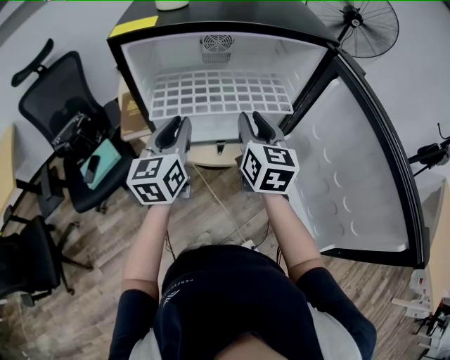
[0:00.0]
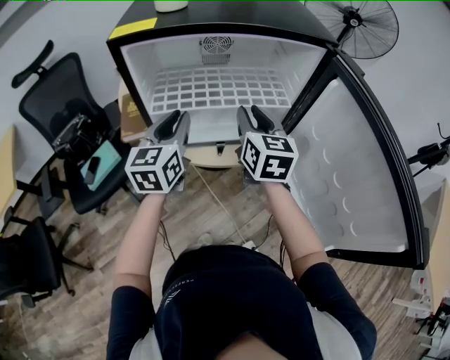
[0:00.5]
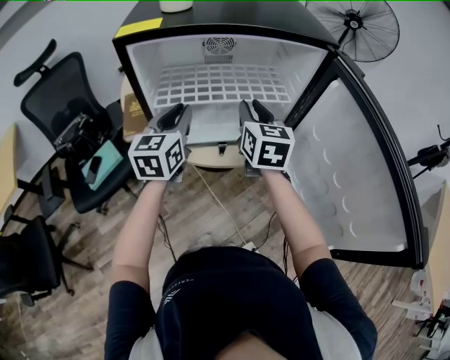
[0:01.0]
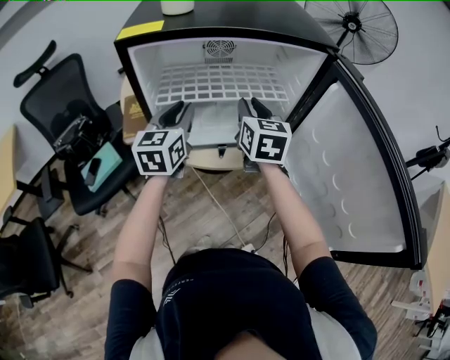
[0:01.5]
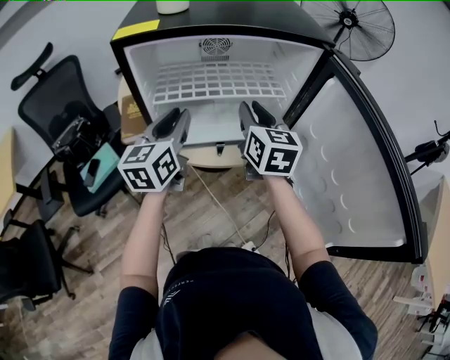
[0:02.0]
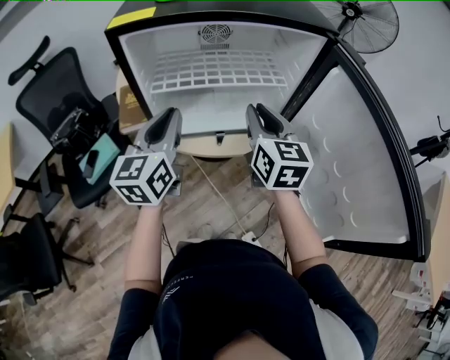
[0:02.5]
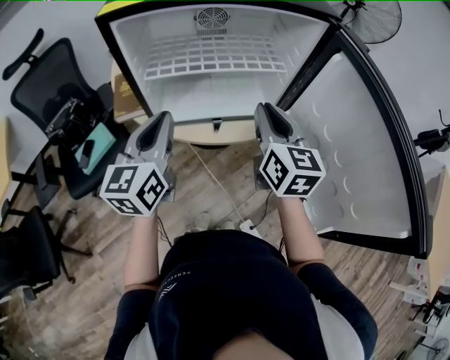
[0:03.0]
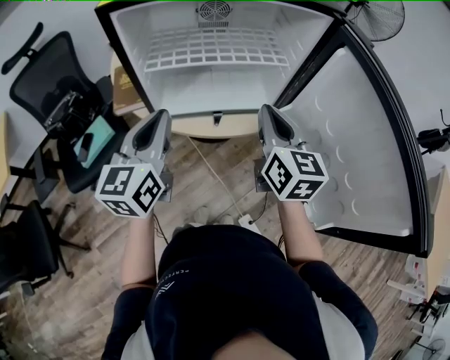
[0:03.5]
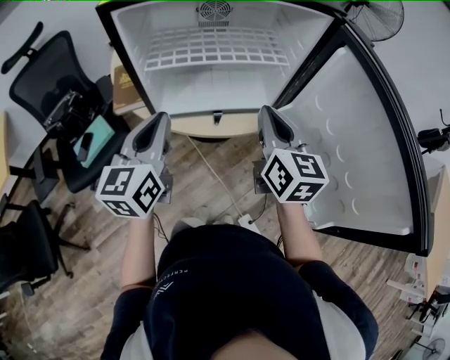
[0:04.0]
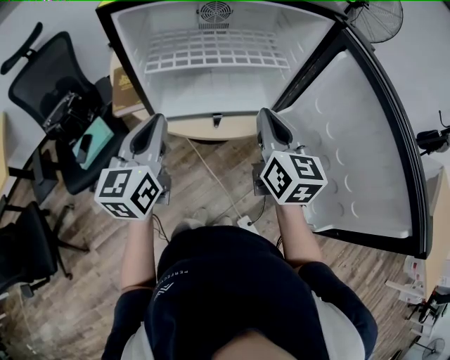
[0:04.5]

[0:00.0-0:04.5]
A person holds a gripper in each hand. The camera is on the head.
0:00.0 to 0:02.0: The grippers stay close to where they were, moving slightly.
0:02.0 to 0:04.5: Both grippers move backward, some 10 cm. The right gripper closes up.

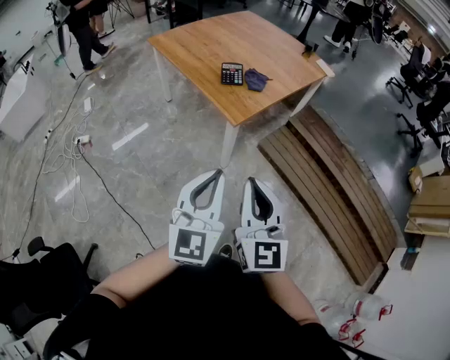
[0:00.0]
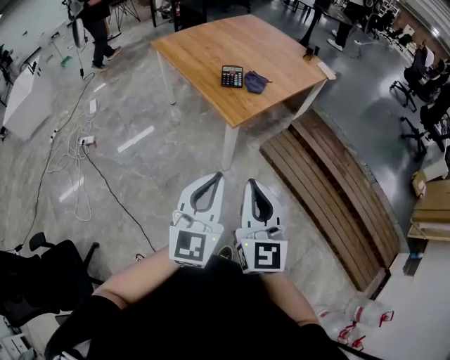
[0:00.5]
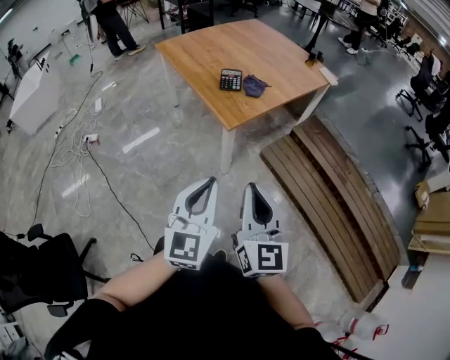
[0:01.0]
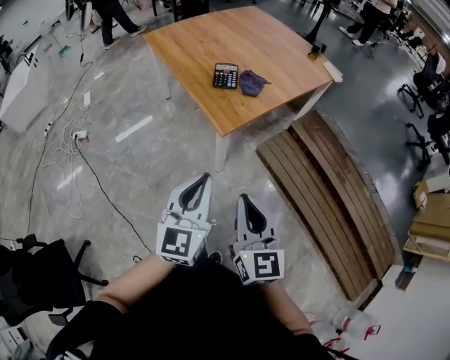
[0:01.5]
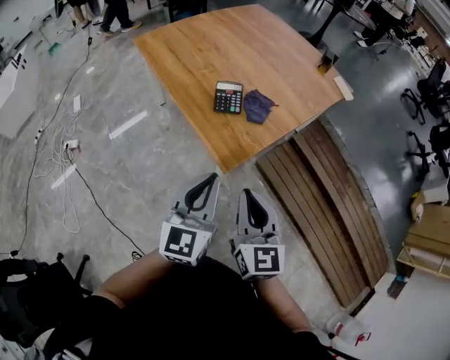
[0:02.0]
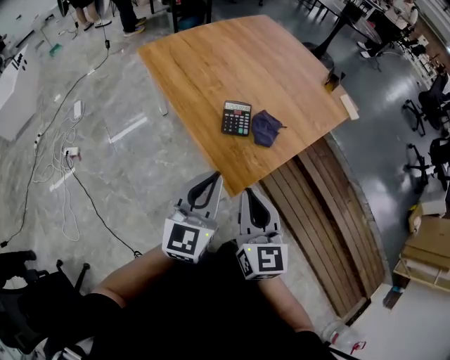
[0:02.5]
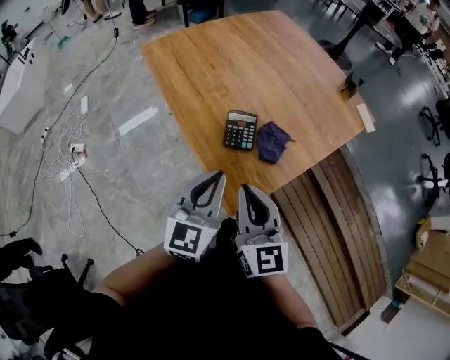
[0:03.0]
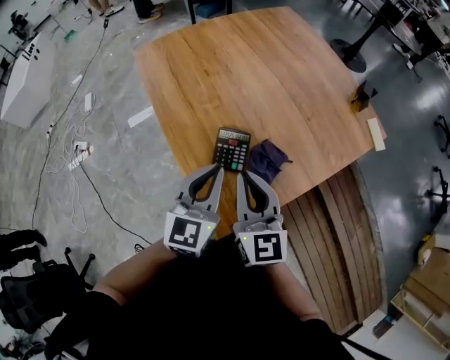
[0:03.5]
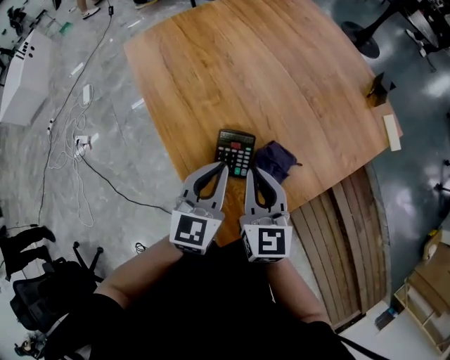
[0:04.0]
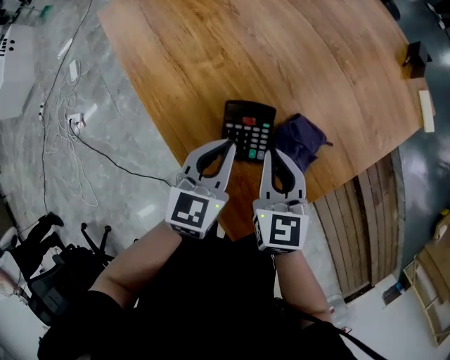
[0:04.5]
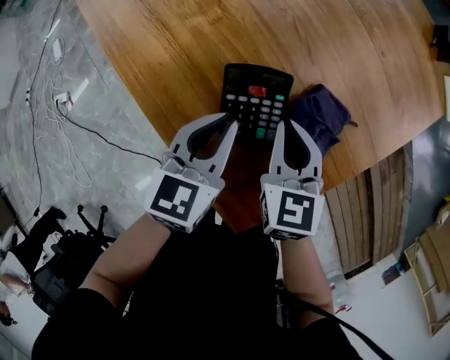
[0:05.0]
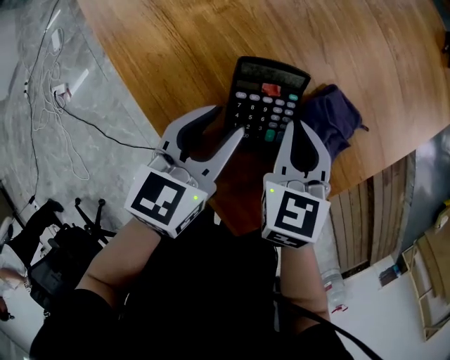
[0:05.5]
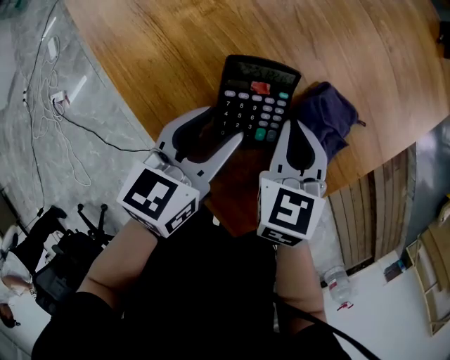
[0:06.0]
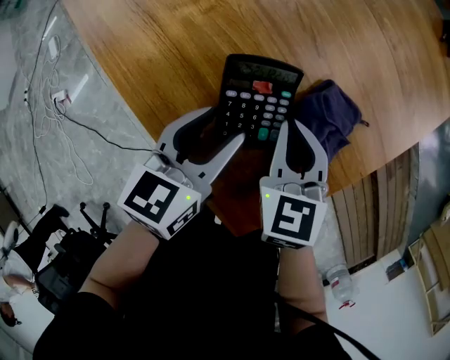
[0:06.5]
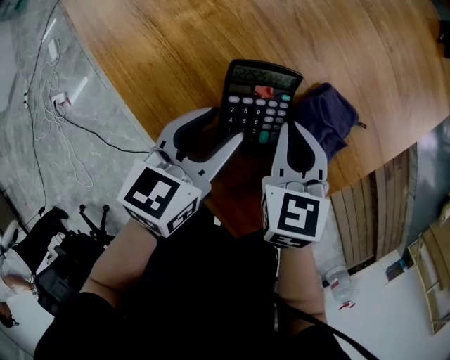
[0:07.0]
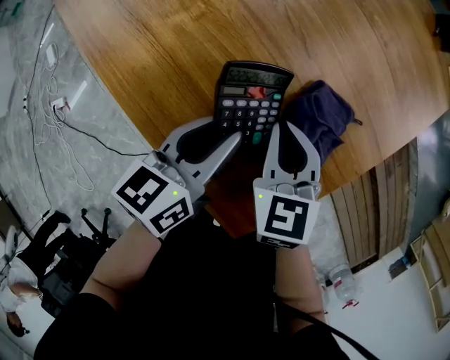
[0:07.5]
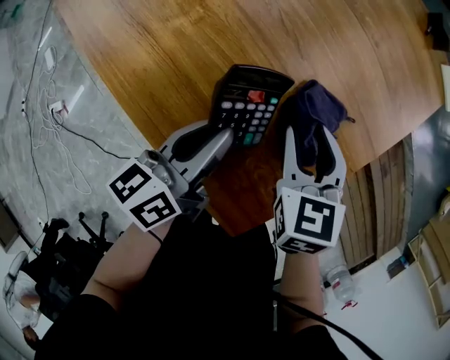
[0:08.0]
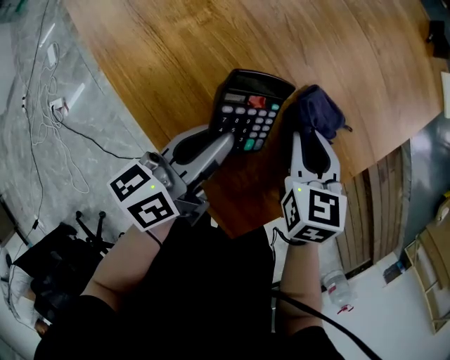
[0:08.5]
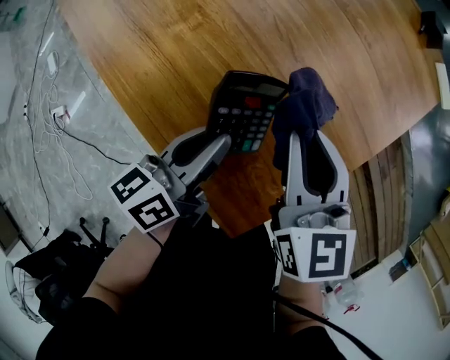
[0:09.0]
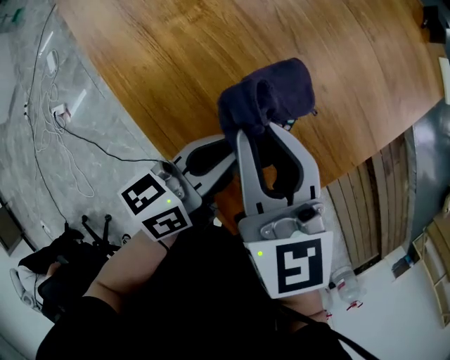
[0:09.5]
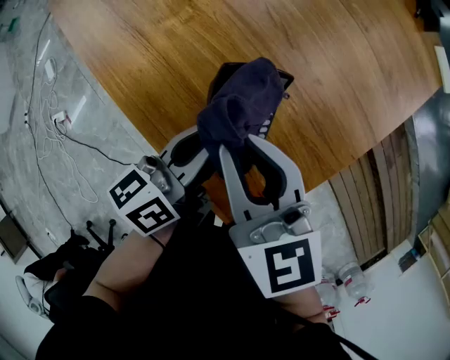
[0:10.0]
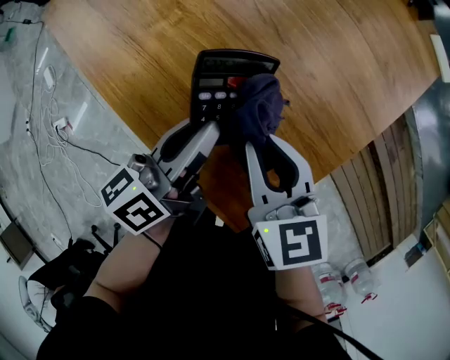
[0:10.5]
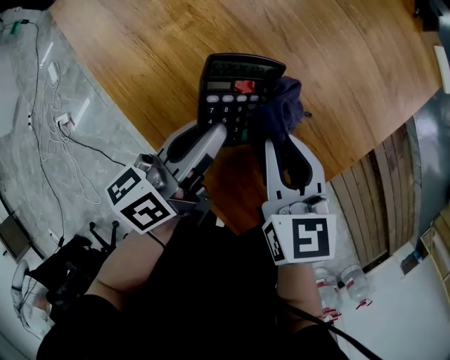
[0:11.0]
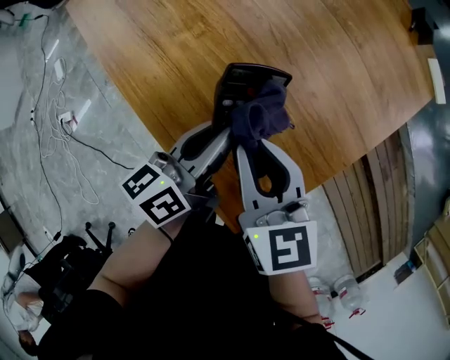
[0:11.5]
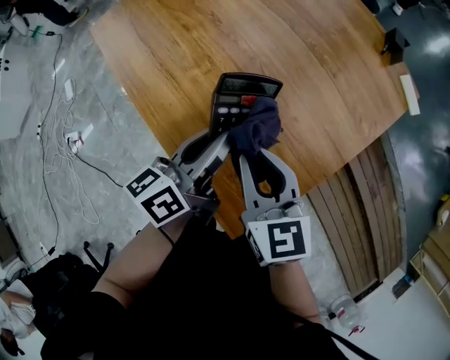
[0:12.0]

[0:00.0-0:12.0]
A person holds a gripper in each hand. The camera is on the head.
0:00.0 to 0:02.0: The two grippers go some 30 cm forward.
0:02.0 to 0:04.0: The two grippers travel together, forward, roughly 40 cm.
0:04.0 to 0:06.0: The grippers both shift downward by roughly 25 cm. The right gripper rotates roughly 30 degrees. Meanwhile the left gripper rotates some 30 degrees, and opens its fingers.
0:06.0 to 0:08.0: The right gripper opens its fingers, while the left gripper changes its angle by some 30 degrees, and closes.
0:08.0 to 0:10.0: The right gripper moves to the left, upward and backward, approximately 15 cm, and changes its angle by about 30 degrees.
0:10.0 to 0:12.0: The right gripper shifts about 5 cm upward. Meanwhile the left gripper shifts roughly 10 cm upward.

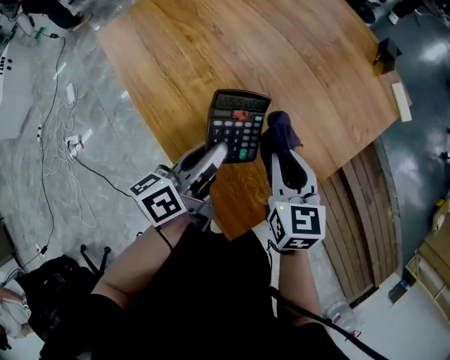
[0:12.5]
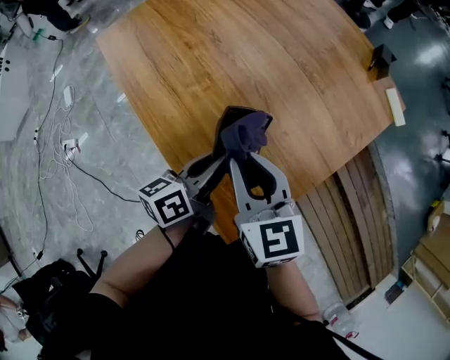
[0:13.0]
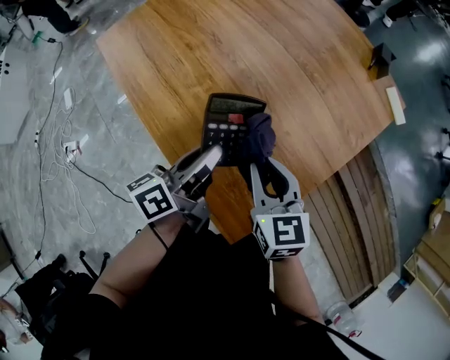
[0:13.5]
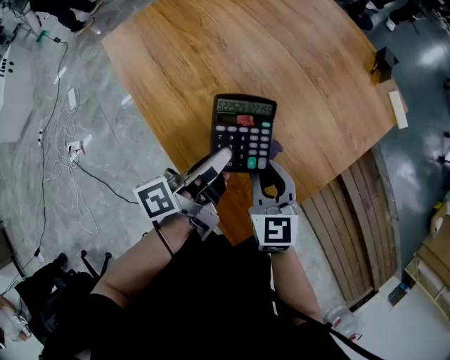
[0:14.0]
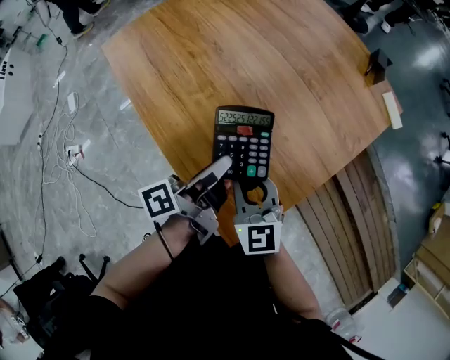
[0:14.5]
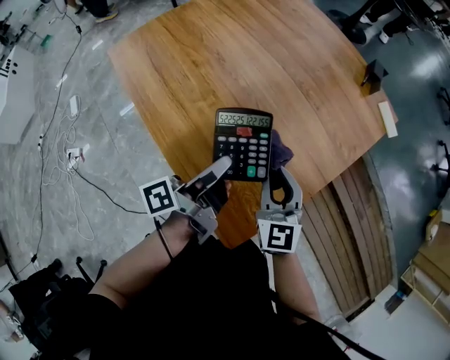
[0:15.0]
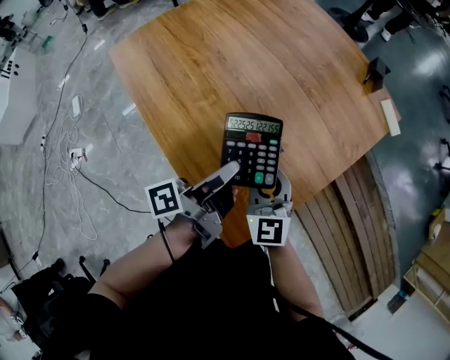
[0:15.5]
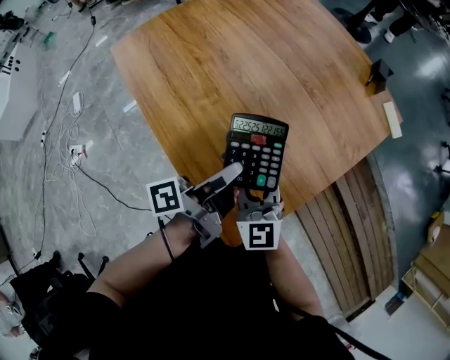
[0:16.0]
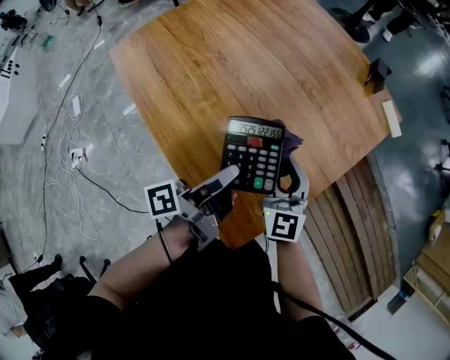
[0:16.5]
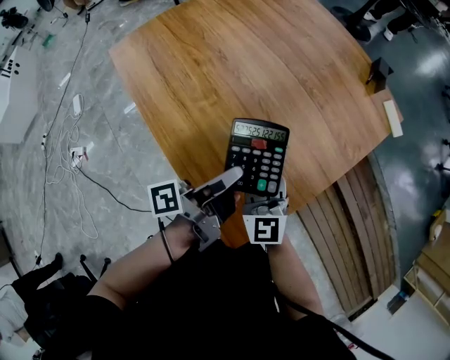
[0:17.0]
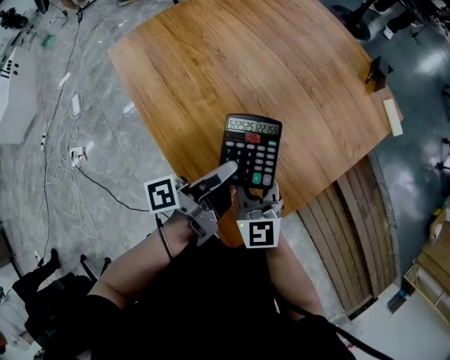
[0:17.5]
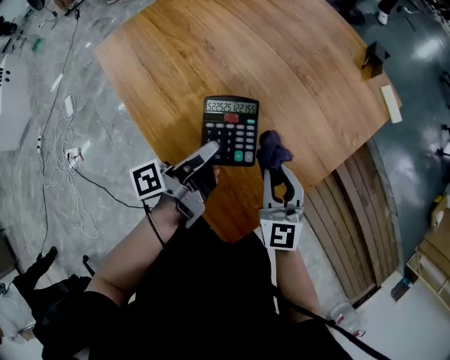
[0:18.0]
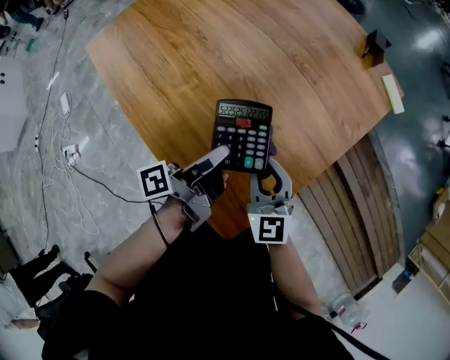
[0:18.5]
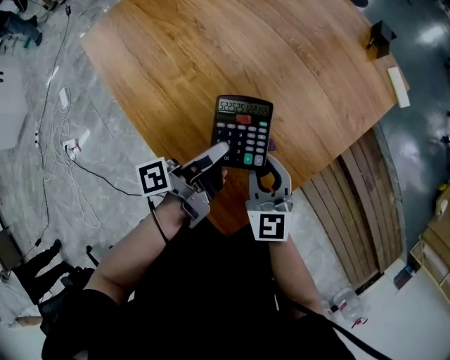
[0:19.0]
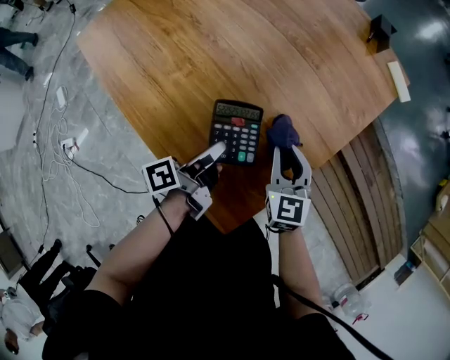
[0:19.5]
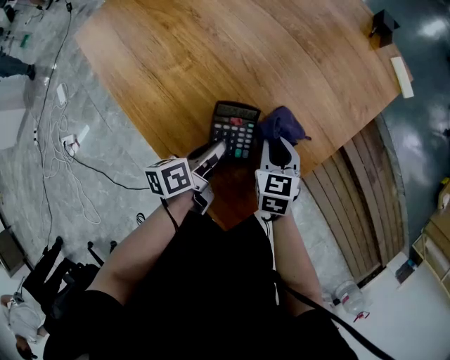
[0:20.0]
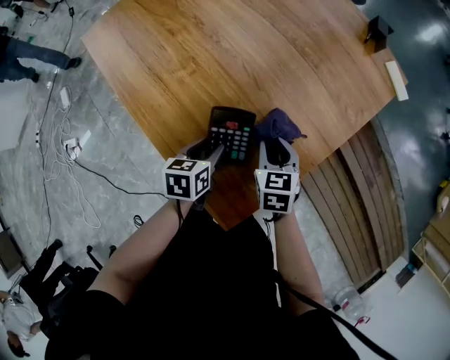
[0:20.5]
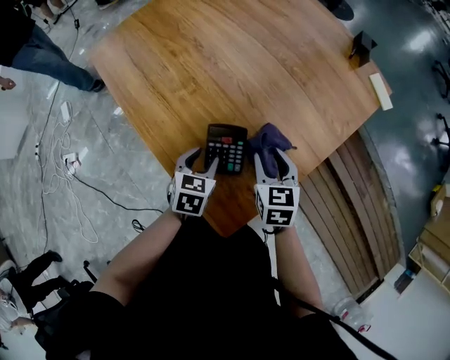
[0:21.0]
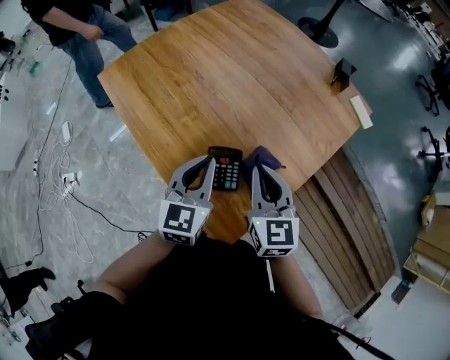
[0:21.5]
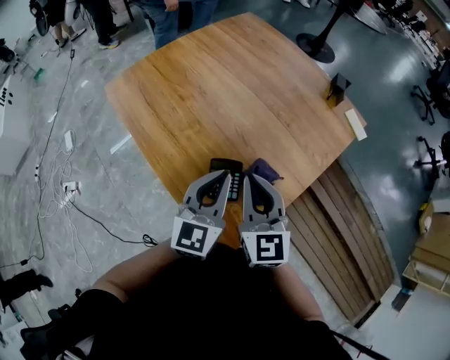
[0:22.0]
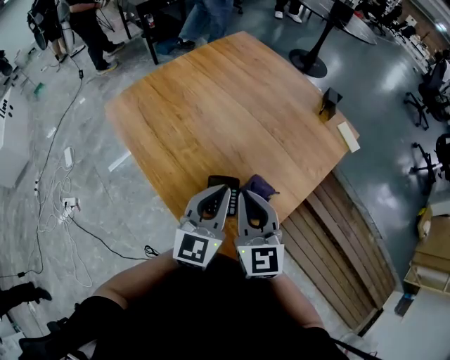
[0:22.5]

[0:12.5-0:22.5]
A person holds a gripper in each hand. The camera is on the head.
0:12.5 to 0:14.5: The right gripper moves left and right over about 10 cm, changing direction 2 times, and swivels about 20 degrees. The left gripper turns by roughly 30 degrees.
0:14.5 to 0:16.5: The right gripper moves left and right over about 10 cm, changing direction 2 times.
0:16.5 to 0:18.5: The right gripper moves left and right over some 10 cm, changing direction 2 times.
0:18.5 to 0:20.5: The right gripper shifts some 15 cm downward and to the right, and tips its fingers downward by about 30 degrees. Meanwhile the left gripper heads downward, covering roughly 15 cm, points its fingers some 50 degrees further downward, and opens.
0:20.5 to 0:22.5: Both grippers move upward, some 30 cm. The left gripper points its fingers roughly 40 degrees further upward, and closes up. Meanwhile the right gripper tilts its fingers about 40 degrees upward.
